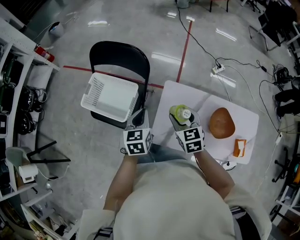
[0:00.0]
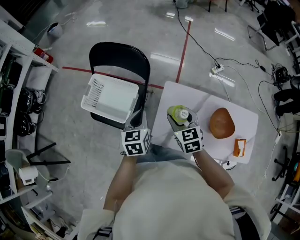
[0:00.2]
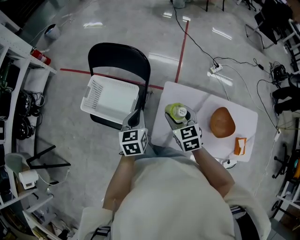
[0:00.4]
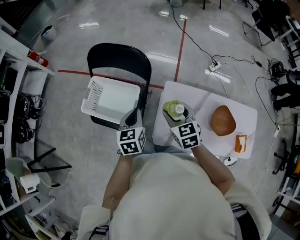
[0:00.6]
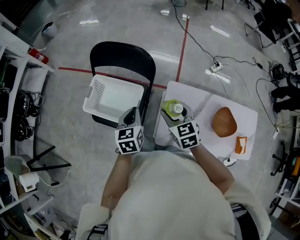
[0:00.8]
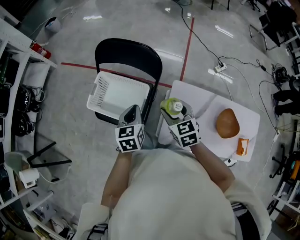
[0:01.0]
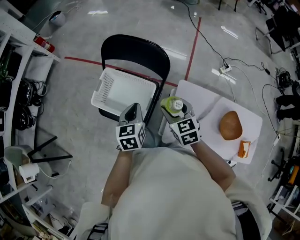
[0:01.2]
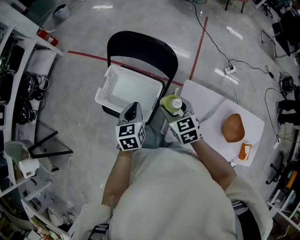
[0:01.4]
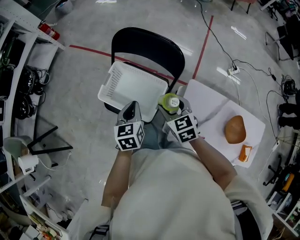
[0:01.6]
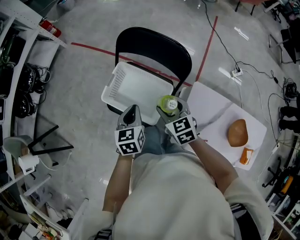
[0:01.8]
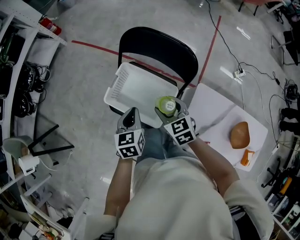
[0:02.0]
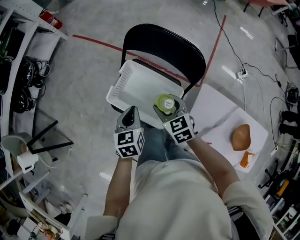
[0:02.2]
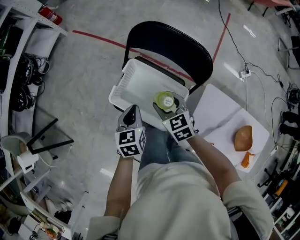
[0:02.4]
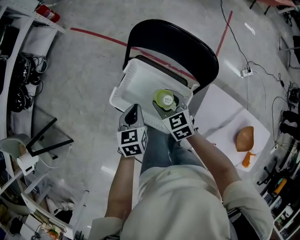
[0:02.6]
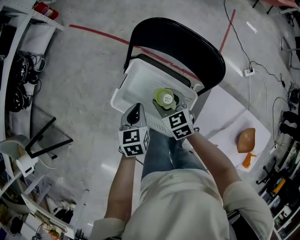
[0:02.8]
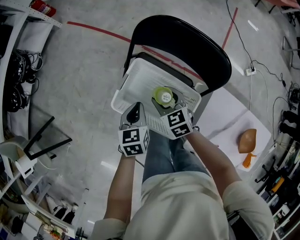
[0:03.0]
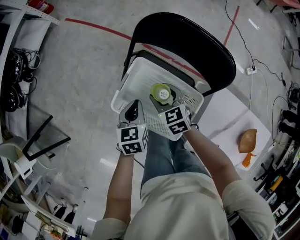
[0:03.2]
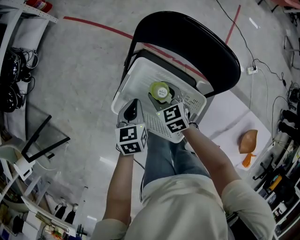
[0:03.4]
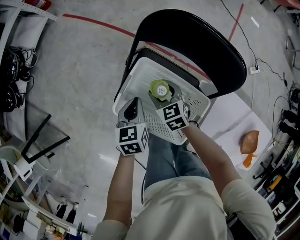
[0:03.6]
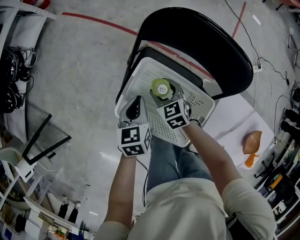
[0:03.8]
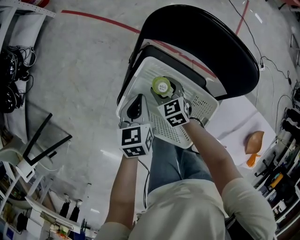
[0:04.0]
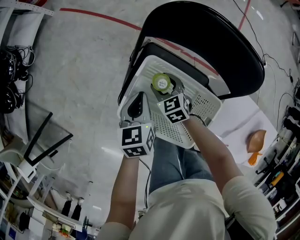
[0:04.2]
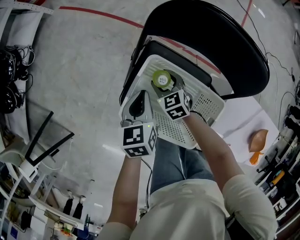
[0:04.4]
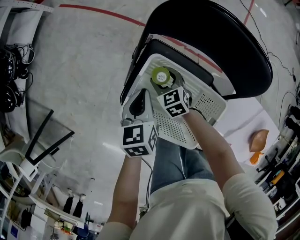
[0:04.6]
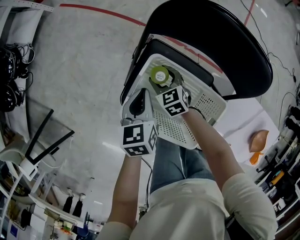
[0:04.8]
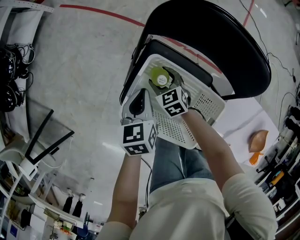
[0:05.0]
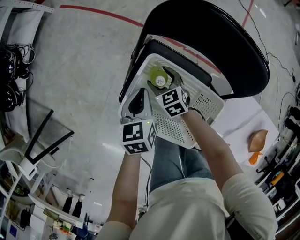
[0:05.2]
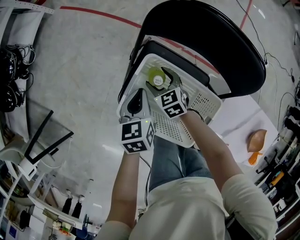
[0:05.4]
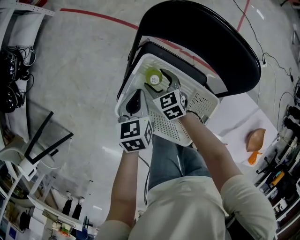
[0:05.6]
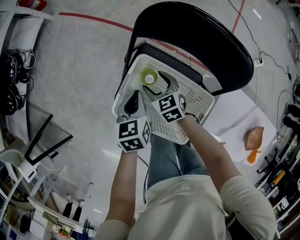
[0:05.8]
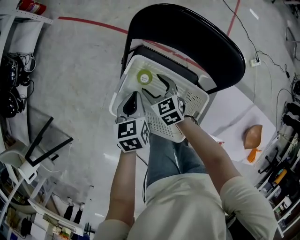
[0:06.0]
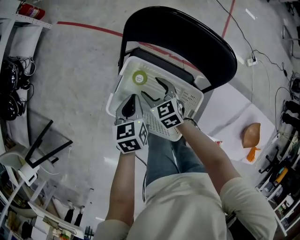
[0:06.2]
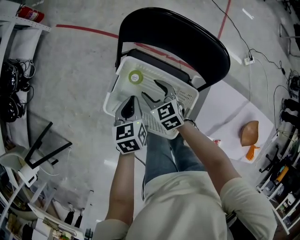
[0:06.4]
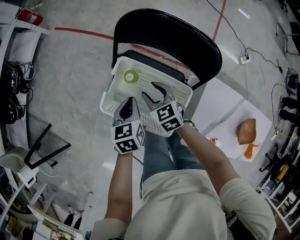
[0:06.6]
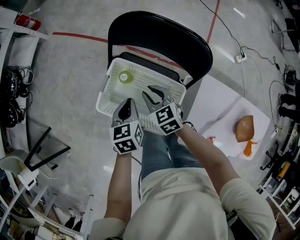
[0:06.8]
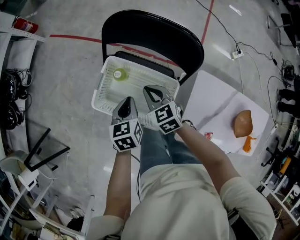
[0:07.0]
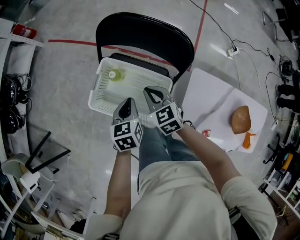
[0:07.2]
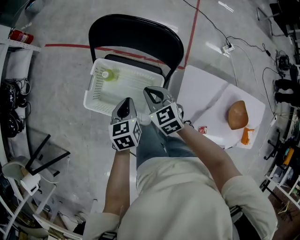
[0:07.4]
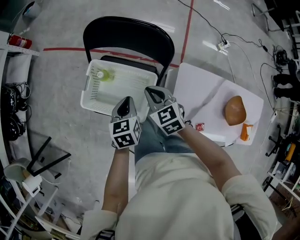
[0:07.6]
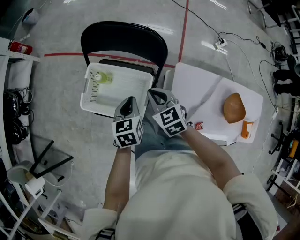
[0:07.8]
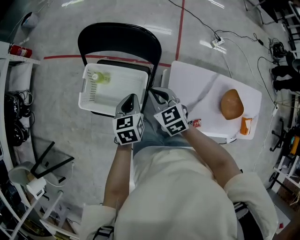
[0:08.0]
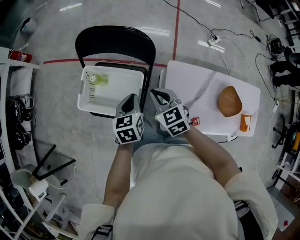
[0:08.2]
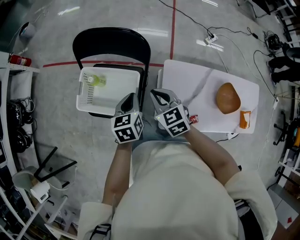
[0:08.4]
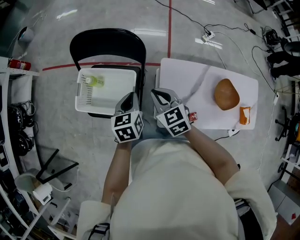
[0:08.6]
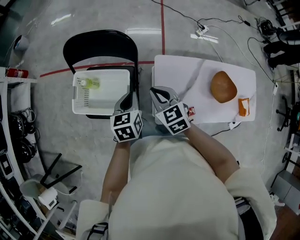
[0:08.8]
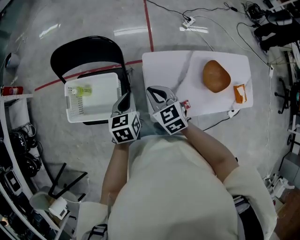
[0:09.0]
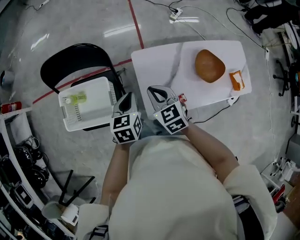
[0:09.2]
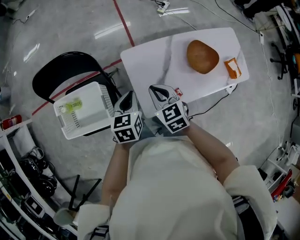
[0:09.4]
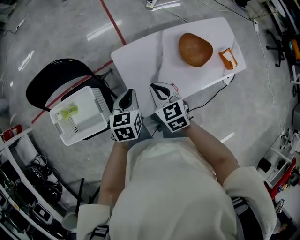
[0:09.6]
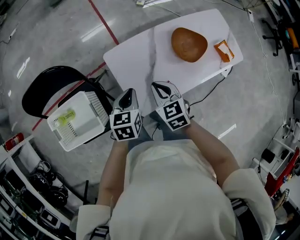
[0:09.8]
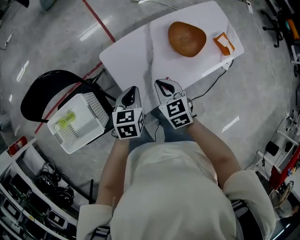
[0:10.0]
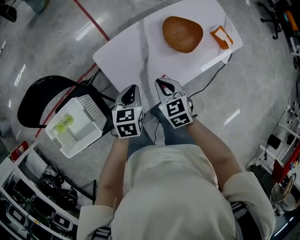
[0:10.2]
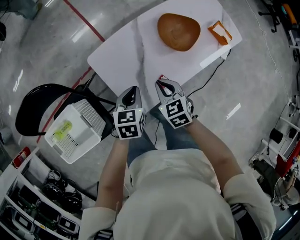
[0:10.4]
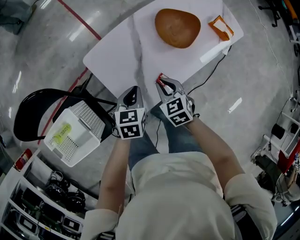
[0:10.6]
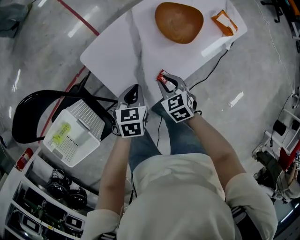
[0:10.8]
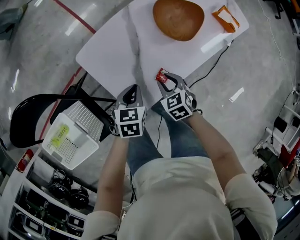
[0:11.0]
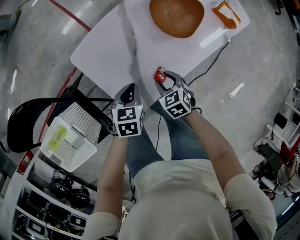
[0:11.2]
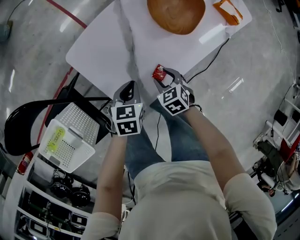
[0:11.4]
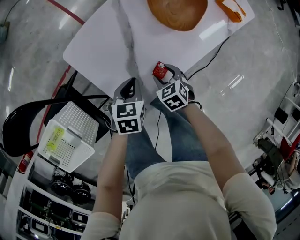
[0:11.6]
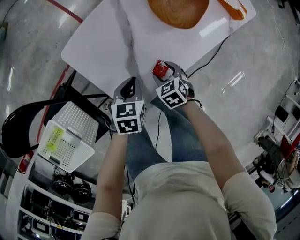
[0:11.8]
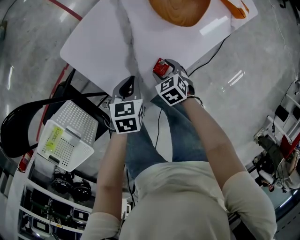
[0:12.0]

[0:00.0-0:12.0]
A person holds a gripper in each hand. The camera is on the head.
0:00.0 to 0:01.6: Both grippers travel together to the left and forward, about 20 cm.
0:01.6 to 0:03.0: The left gripper shifts about 20 cm downward, forward and to the left, while the right gripper heads forward, downward and to the left, covering roughly 25 cm.
0:03.0 to 0:04.4: The right gripper travels downward and forward by some 15 cm; the left gripper is displaced forward and downward by approximately 10 cm.
0:04.4 to 0:06.0: The right gripper moves upward, approximately 5 cm.
0:06.0 to 0:07.6: The left gripper heads to the right, backward and upward, covering roughly 20 cm; the right gripper goes some 25 cm upward, to the right and backward, and closes up.
0:07.6 to 0:09.0: The right gripper moves to the right and backward, about 20 cm. Meanwhile the left gripper is displaced to the right by approximately 15 cm, and rotates some 20 degrees.
0:09.0 to 0:10.4: The left gripper changes place by about 25 cm, and turns by roughly 40 degrees; the right gripper shifts by roughly 30 cm, and rotates approximately 40 degrees.
0:10.4 to 0:12.0: The left gripper goes roughly 15 cm downward. Meanwhile the right gripper travels downward by about 25 cm, turns by about 20 degrees, and opens up.

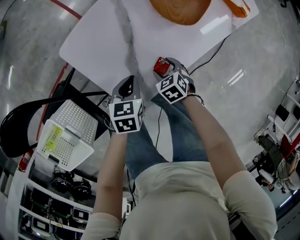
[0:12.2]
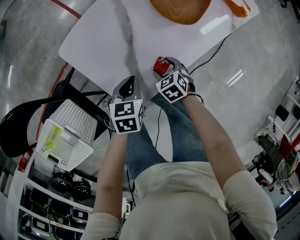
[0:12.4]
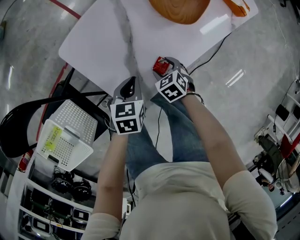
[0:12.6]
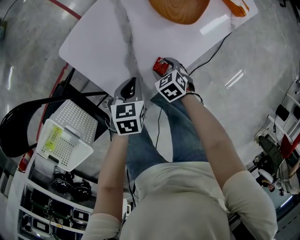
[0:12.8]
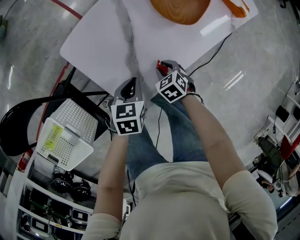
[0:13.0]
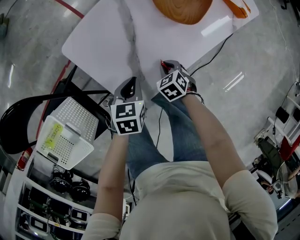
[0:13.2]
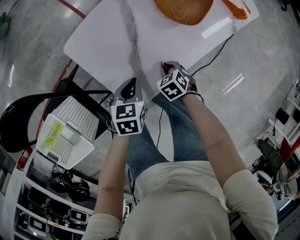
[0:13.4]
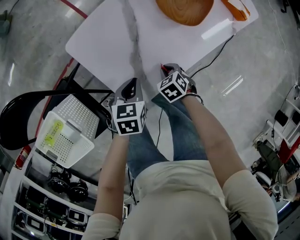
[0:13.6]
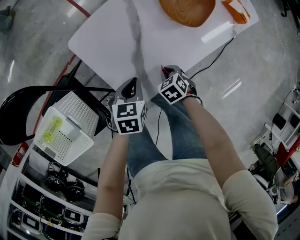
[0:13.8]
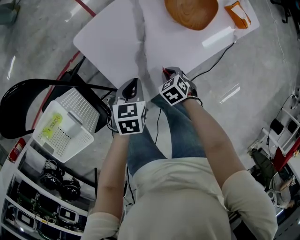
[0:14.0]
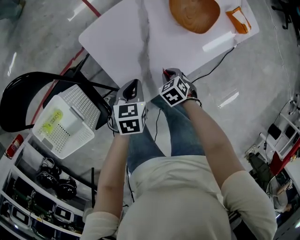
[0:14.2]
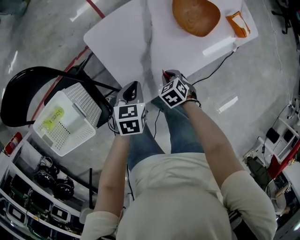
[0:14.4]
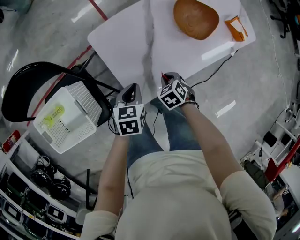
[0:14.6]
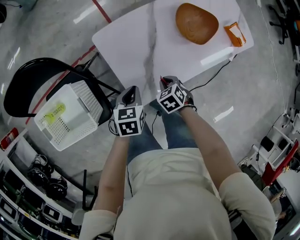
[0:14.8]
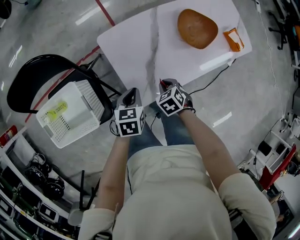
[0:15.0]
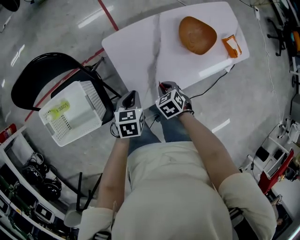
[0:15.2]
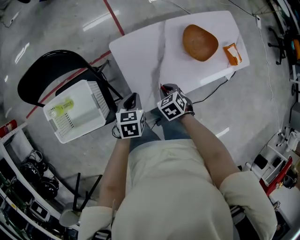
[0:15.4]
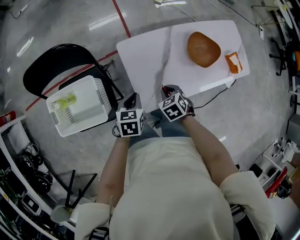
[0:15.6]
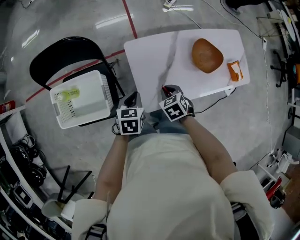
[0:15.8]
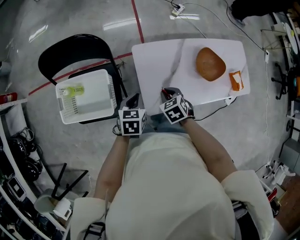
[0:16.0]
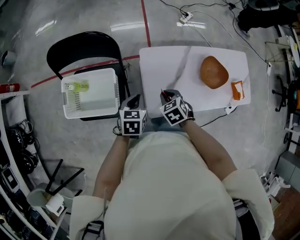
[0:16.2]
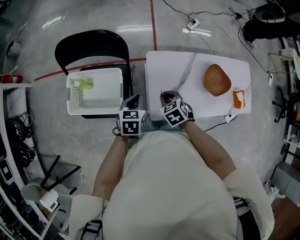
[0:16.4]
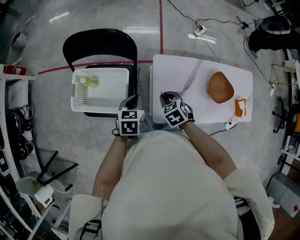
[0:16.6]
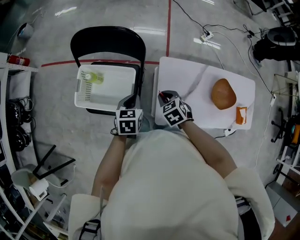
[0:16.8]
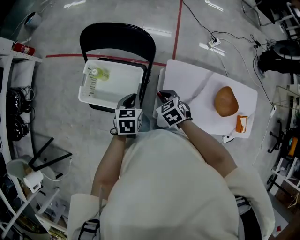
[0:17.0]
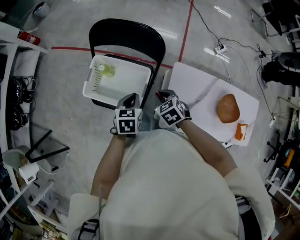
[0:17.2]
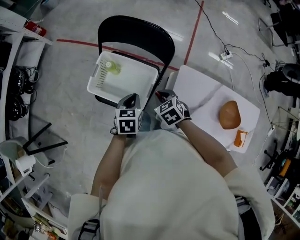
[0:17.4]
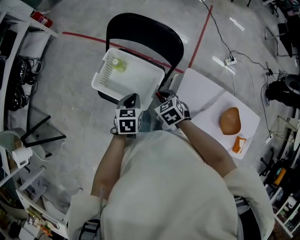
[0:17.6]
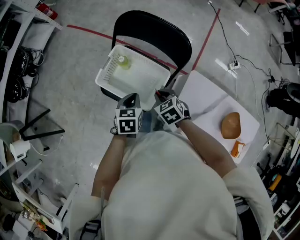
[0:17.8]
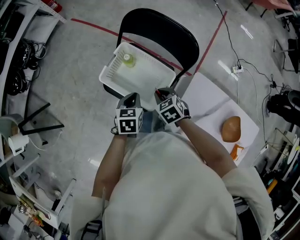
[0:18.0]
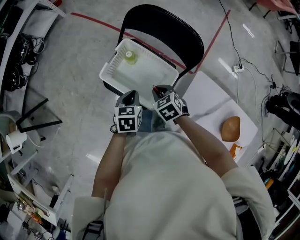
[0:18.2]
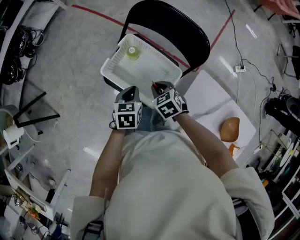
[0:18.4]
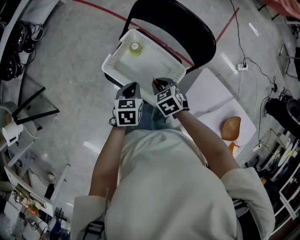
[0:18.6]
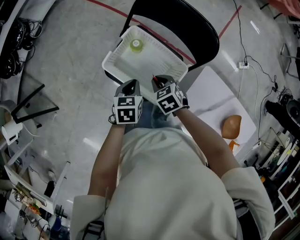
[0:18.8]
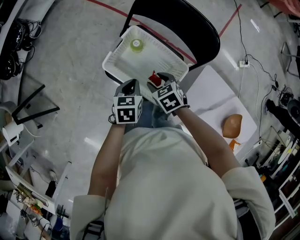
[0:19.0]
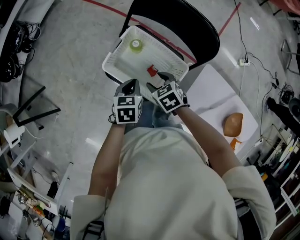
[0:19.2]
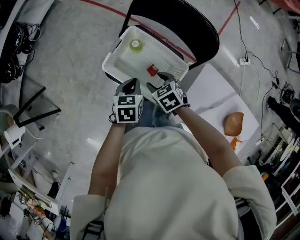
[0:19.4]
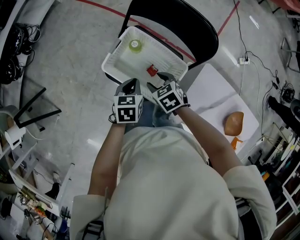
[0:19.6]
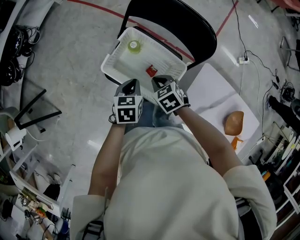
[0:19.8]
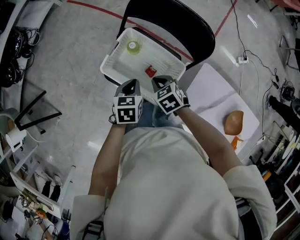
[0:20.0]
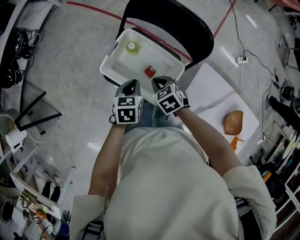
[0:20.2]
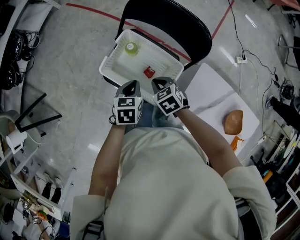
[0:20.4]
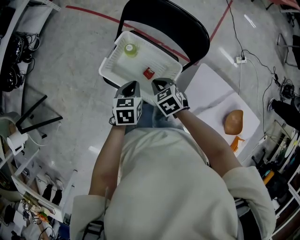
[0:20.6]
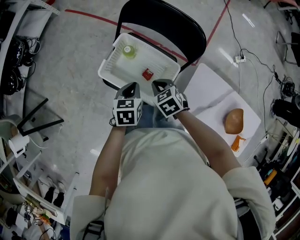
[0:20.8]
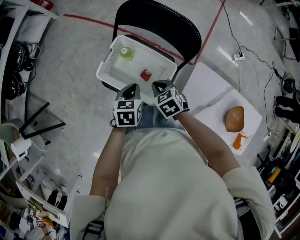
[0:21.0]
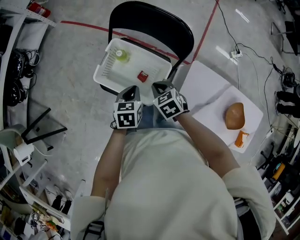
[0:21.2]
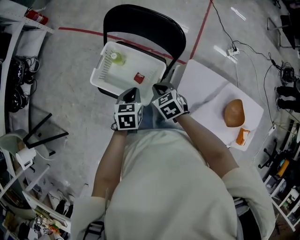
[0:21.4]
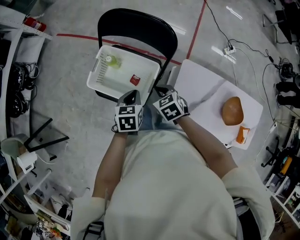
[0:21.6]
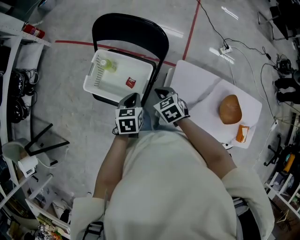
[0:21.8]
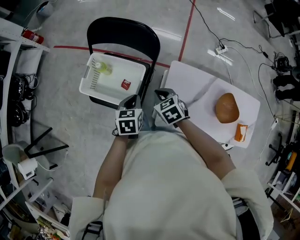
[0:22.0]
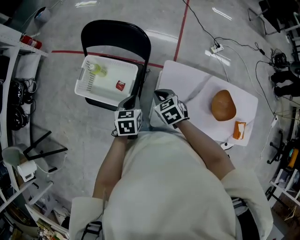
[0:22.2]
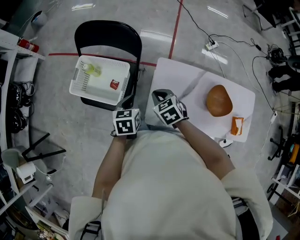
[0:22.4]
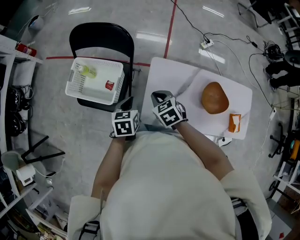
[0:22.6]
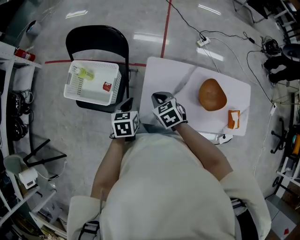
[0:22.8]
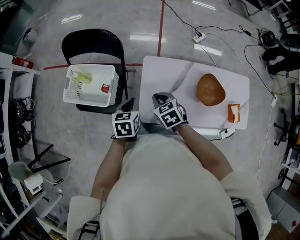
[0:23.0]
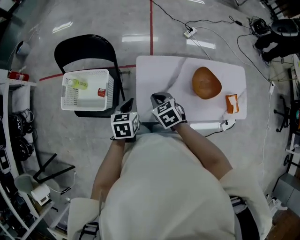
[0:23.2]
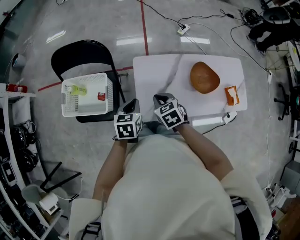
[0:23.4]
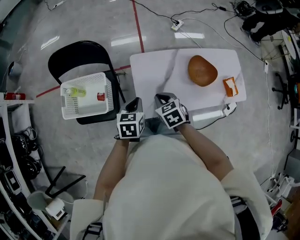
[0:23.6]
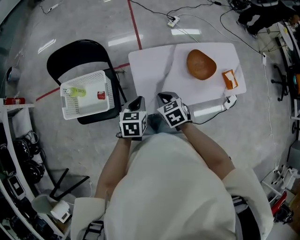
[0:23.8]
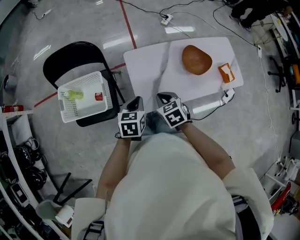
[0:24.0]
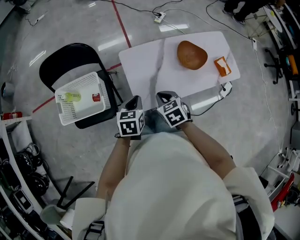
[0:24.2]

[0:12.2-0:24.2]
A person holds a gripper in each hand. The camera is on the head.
0:12.2 to 0:13.8: The right gripper closes its fingers.
0:13.8 to 0:15.2: The two grippers go roughly 10 cm upward.
0:15.2 to 0:16.6: The left gripper moves roughly 20 cm, and turns by about 20 degrees. The right gripper changes place by some 20 cm, and changes its angle by roughly 30 degrees.
0:16.6 to 0:18.2: The right gripper ends up roughly 25 cm from where it was, and changes its angle by roughly 30 degrees; the left gripper ends up approximately 20 cm from where it was, and changes its angle by approximately 30 degrees.
0:18.2 to 0:19.8: The right gripper opens, then closes again.
0:19.8 to 0:21.2: The left gripper shifts by roughly 5 cm, while the right gripper changes place by roughly 5 cm.
0:21.2 to 0:22.6: Both grippers move to the right and backward, approximately 25 cm.
0:22.6 to 0:24.2: The right gripper changes place by about 15 cm, and rotates roughly 30 degrees. Meanwhile the left gripper changes place by approximately 10 cm, and swivels roughly 30 degrees.
